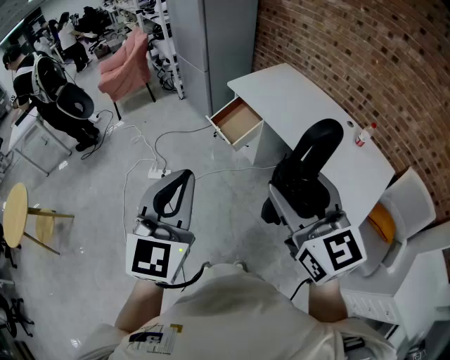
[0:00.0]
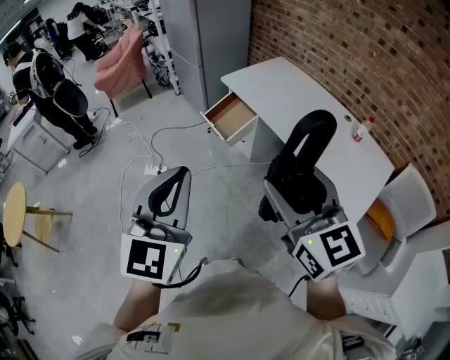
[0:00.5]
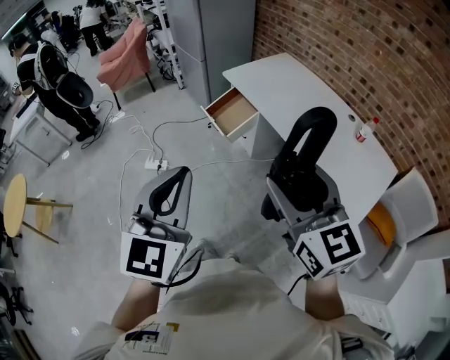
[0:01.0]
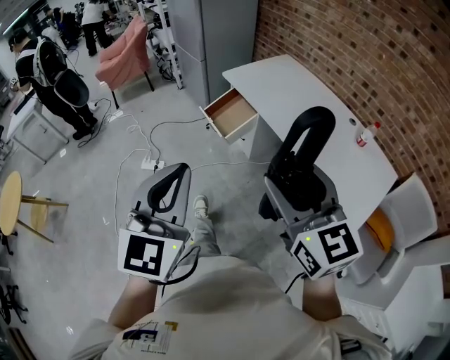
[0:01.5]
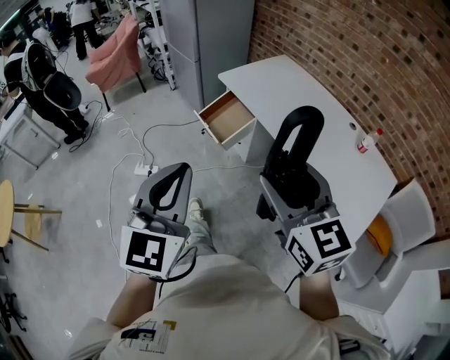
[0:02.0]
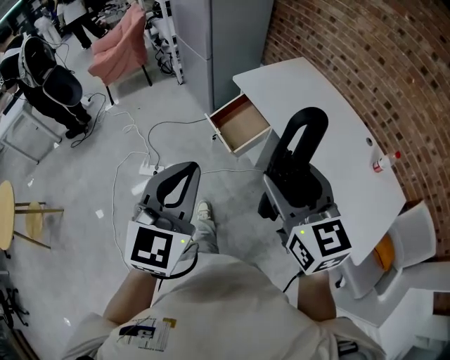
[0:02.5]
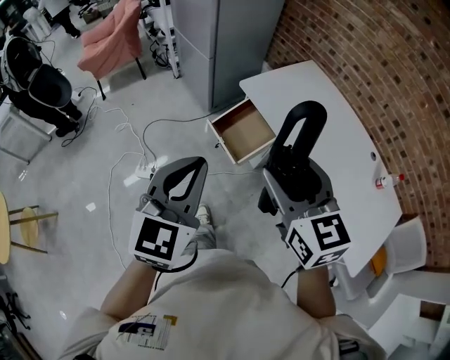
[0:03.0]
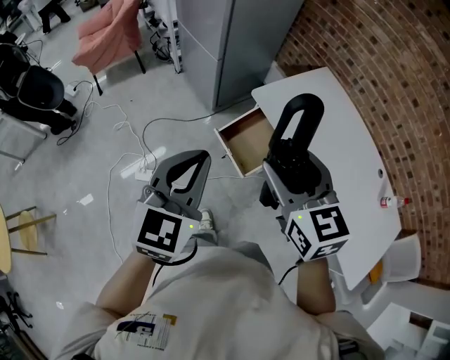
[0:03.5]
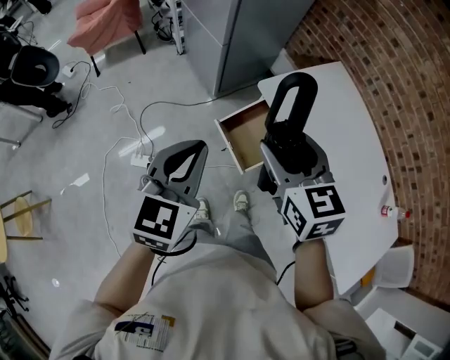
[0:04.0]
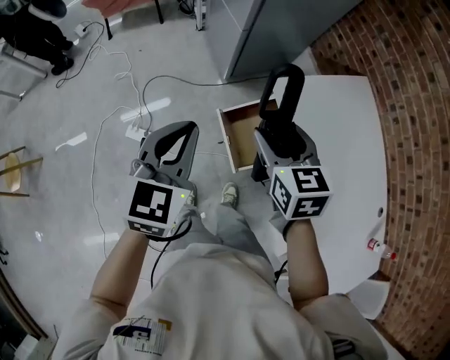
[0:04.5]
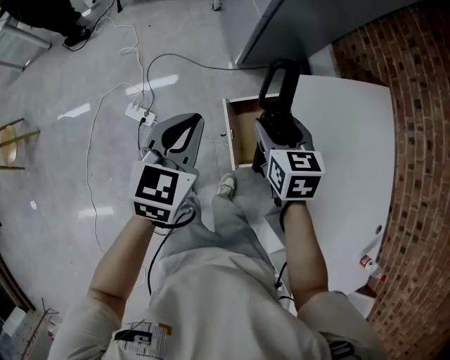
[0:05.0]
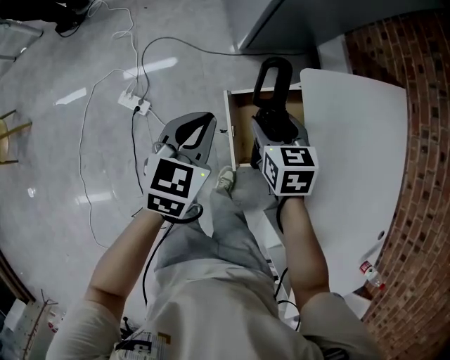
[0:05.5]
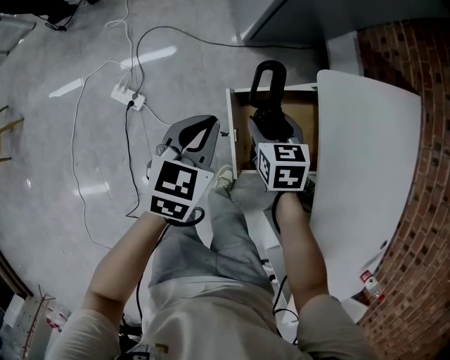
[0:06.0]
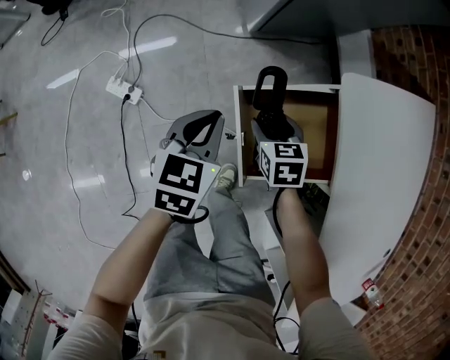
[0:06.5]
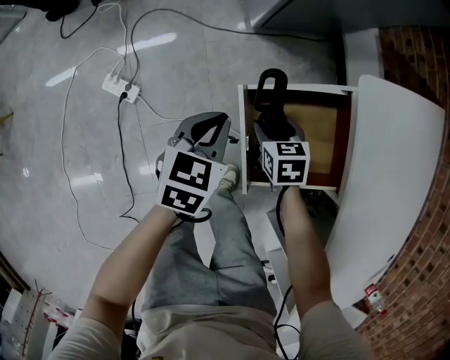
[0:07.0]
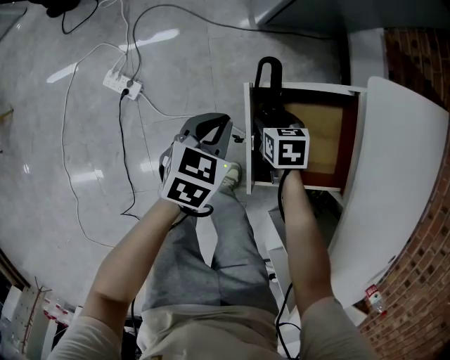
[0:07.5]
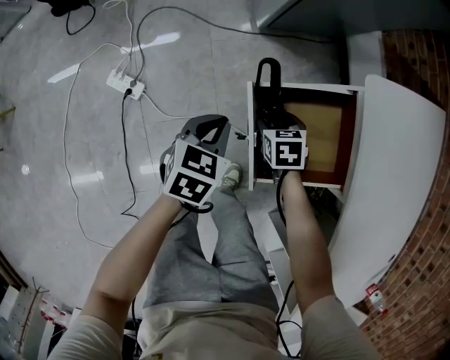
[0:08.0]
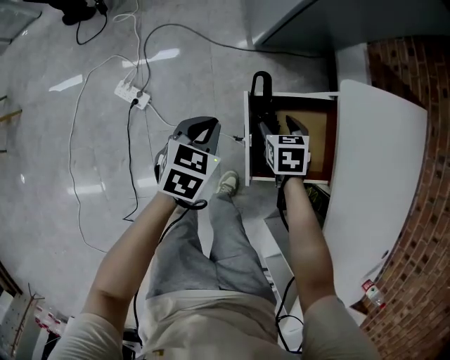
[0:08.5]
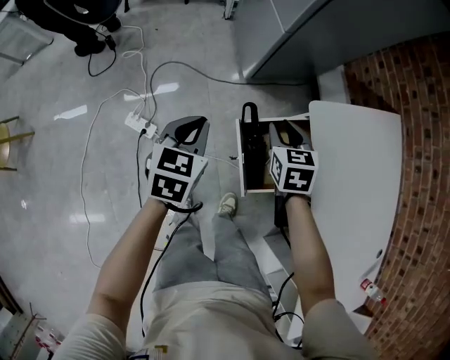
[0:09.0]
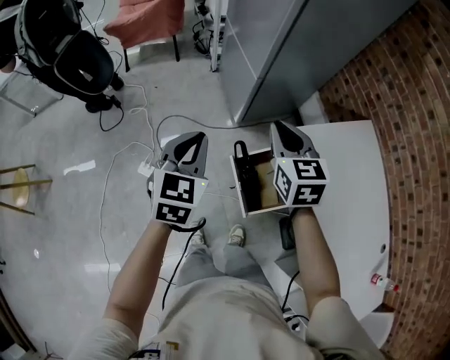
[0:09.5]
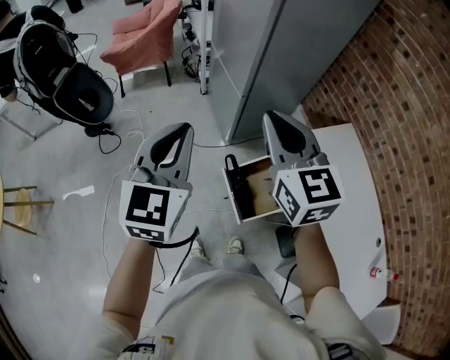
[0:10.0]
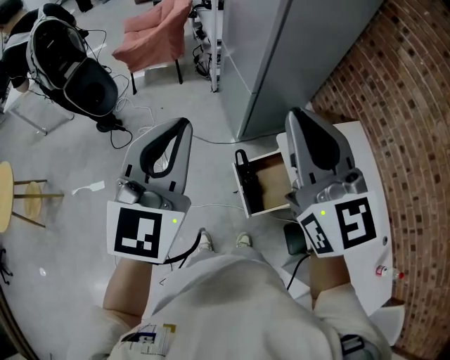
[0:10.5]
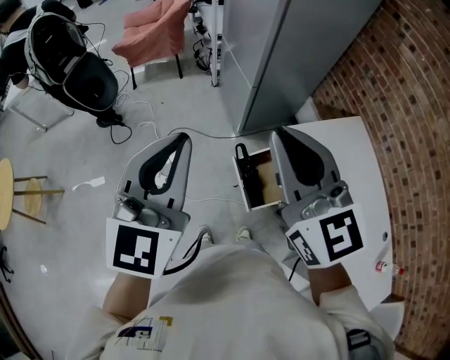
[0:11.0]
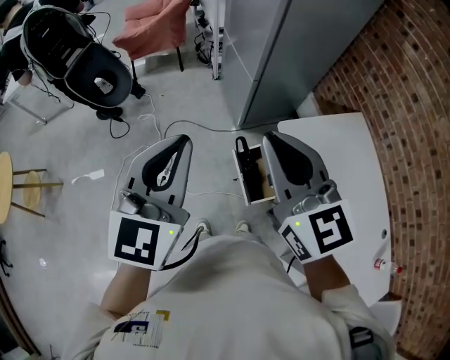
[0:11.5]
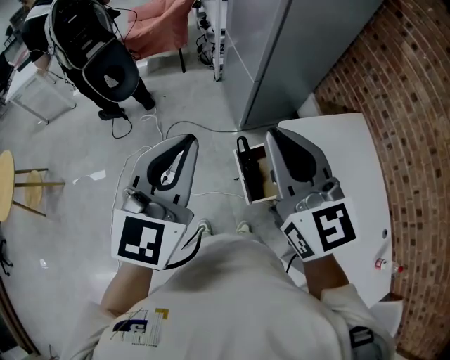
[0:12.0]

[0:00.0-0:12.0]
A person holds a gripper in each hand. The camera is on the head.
0:00.0 to 0:02.0: The left gripper goes some 15 cm forward, to the right and downward; the right gripper moves forward, downward and to the right, some 15 cm.
0:02.0 to 0:04.0: Both grippers are carried forward, roughly 50 cm.
0:04.0 to 0:06.0: The right gripper heads downward, covering some 40 cm, and swivels some 30 degrees. The left gripper moves downward and forward, approximately 35 cm, and swivels about 30 degrees.
0:06.0 to 0:08.0: Both grippers move downward, approximately 20 cm.
0:08.0 to 0:10.0: Both grippers move upward, roughly 60 cm. The left gripper tilts its fingers about 40 degrees upward; the right gripper points its fingers approximately 50 degrees further upward, and closes up.
0:10.0 to 0:12.0: The left gripper moves backward and upward, approximately 10 cm. The right gripper heads backward, covering approximately 10 cm.

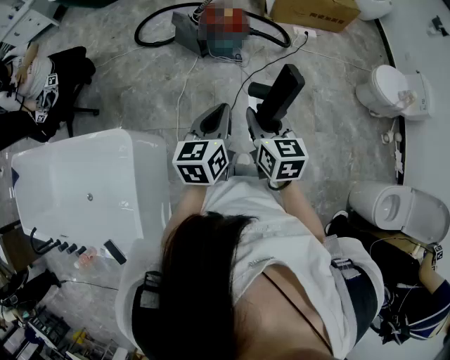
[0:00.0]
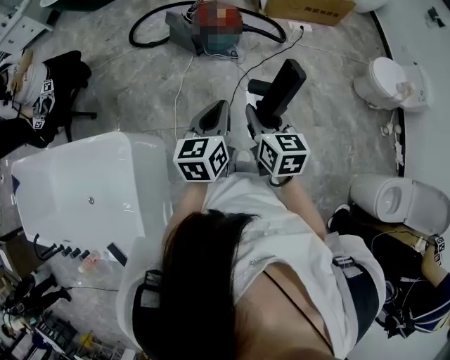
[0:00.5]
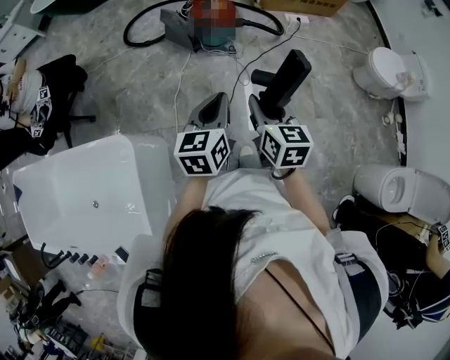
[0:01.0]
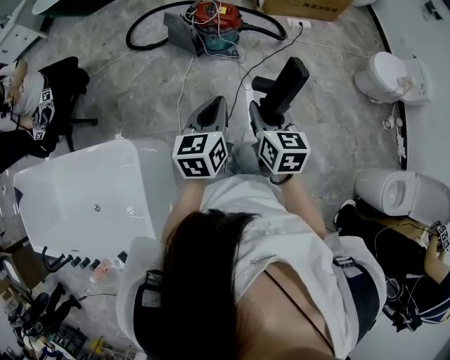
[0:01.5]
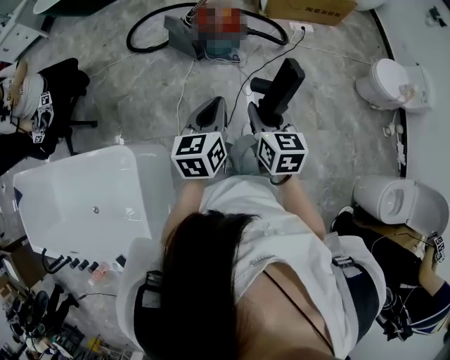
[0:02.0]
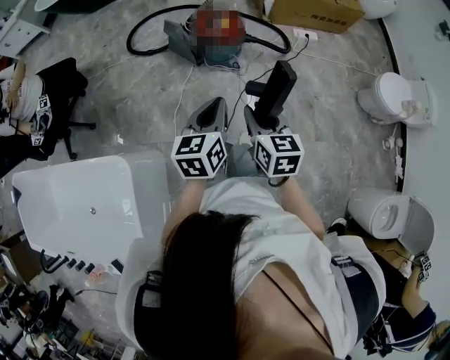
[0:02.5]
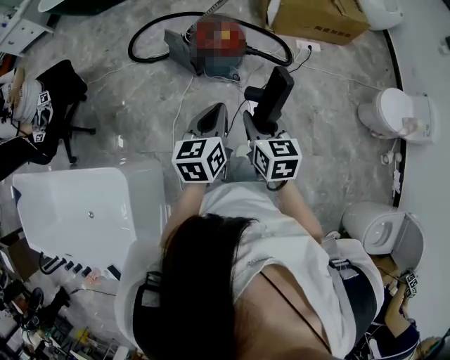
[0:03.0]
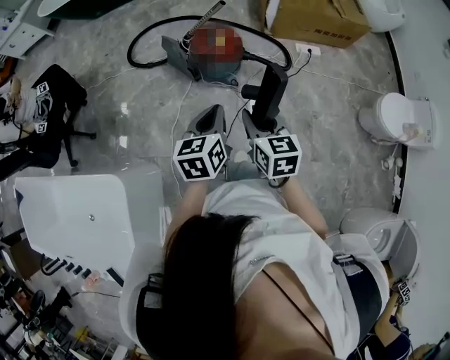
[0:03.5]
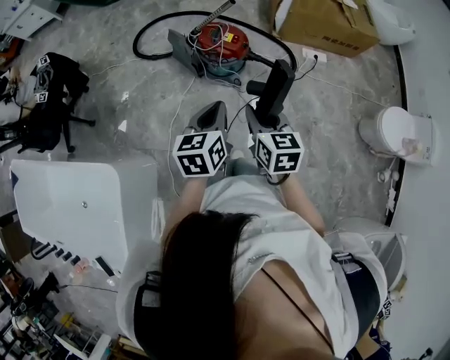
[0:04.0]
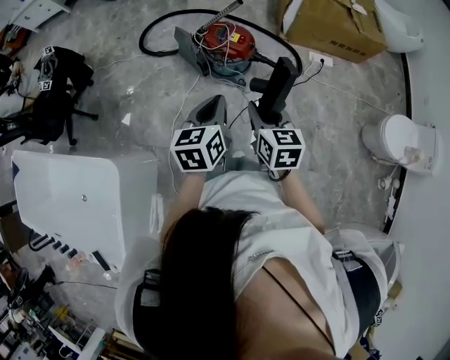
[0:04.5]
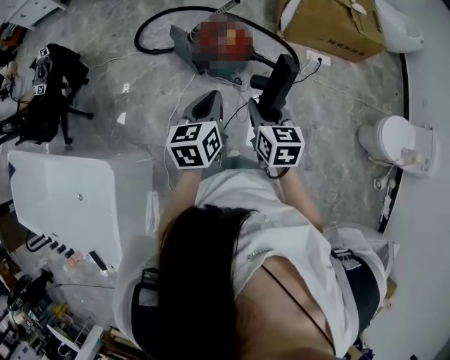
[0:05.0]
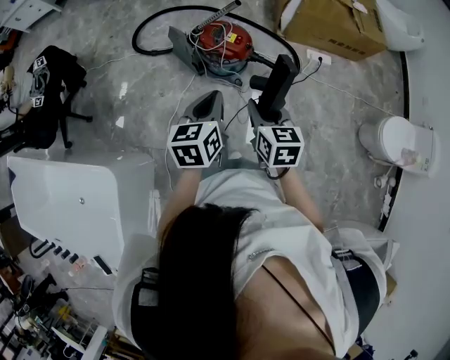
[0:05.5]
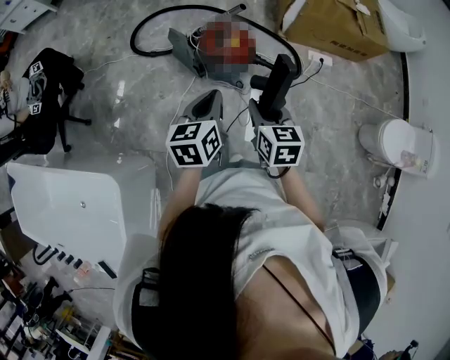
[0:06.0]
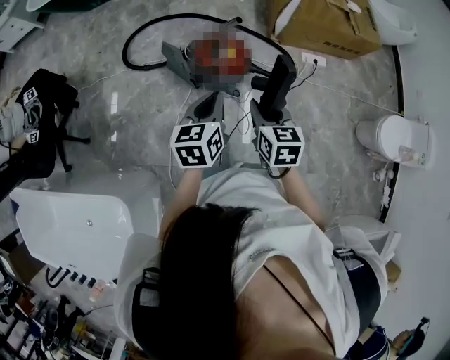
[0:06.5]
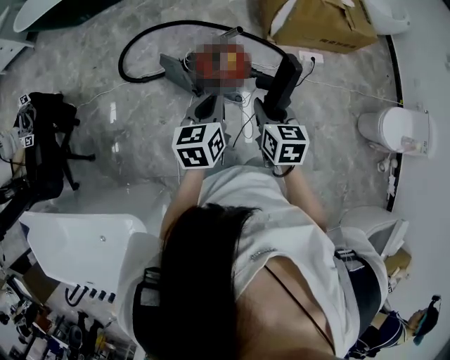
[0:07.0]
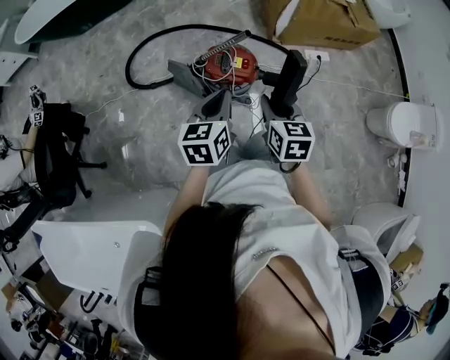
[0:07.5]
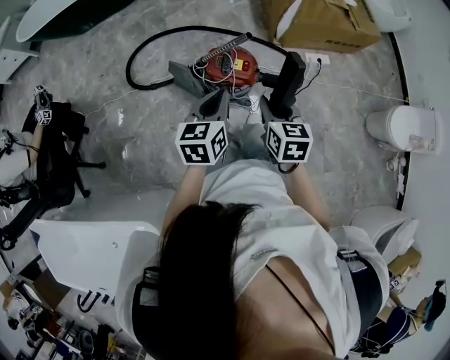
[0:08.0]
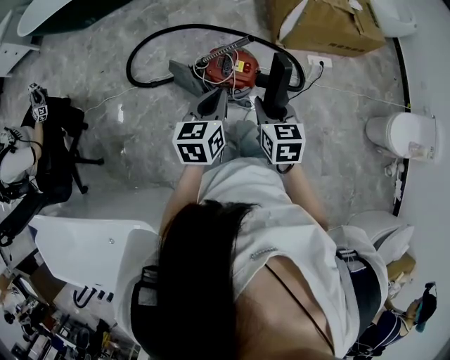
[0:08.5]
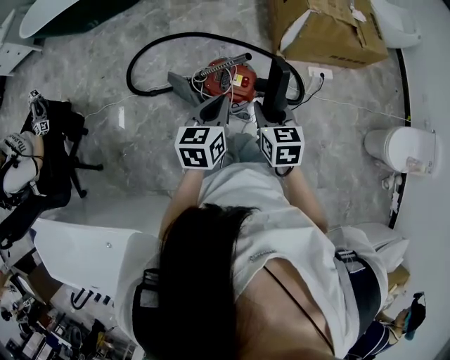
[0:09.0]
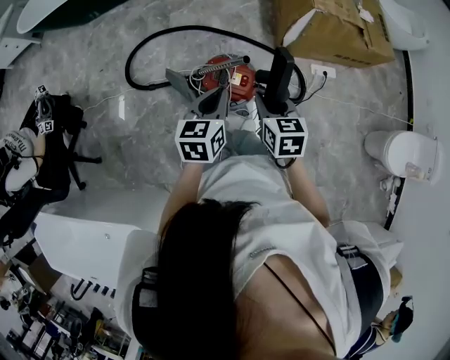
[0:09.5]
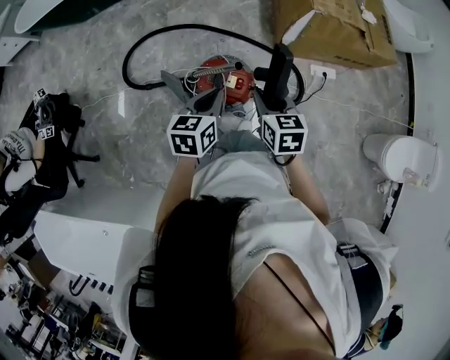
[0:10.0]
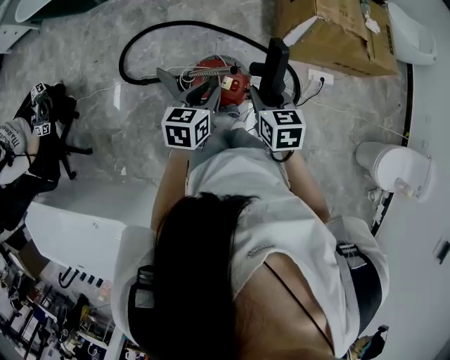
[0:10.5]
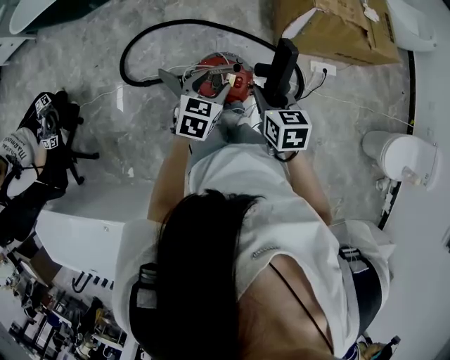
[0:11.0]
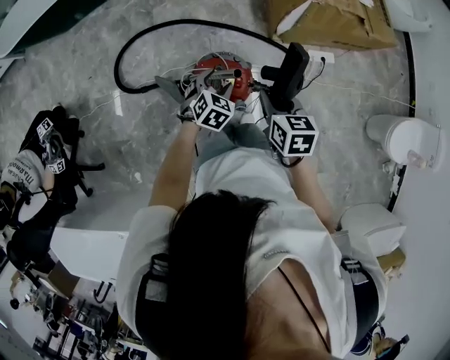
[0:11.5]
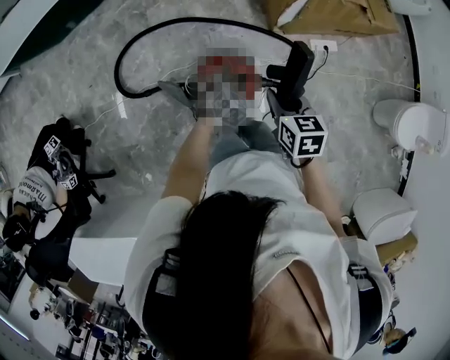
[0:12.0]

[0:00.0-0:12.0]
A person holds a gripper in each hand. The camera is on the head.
0:00.0 to 0:02.0: The grippers both shift forward by some 10 cm.
0:02.0 to 0:04.0: The grippers both shift forward and to the right by roughly 20 cm.
0:04.0 to 0:06.0: The two grippers go about 10 cm forward.
0:06.0 to 0:08.0: The two grippers go approximately 15 cm forward and to the left.
0:08.0 to 0:10.0: The grippers both shift forward by about 15 cm.
0:10.0 to 0:12.0: The left gripper shifts some 20 cm downward and forward, rolls clockwise, seen from behind, by some 50 degrees, and opens. Meanwhile the right gripper goes roughly 5 cm forward.

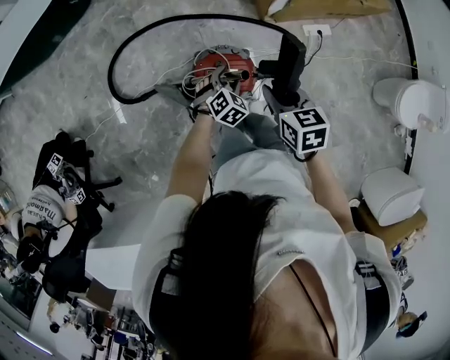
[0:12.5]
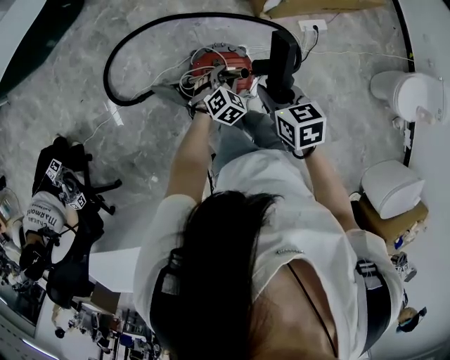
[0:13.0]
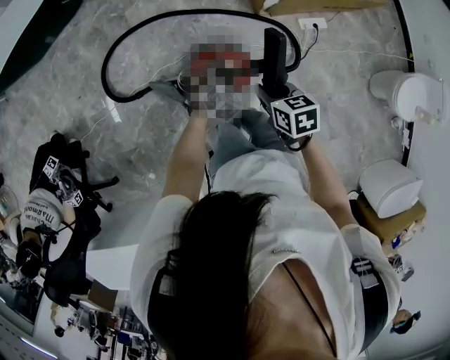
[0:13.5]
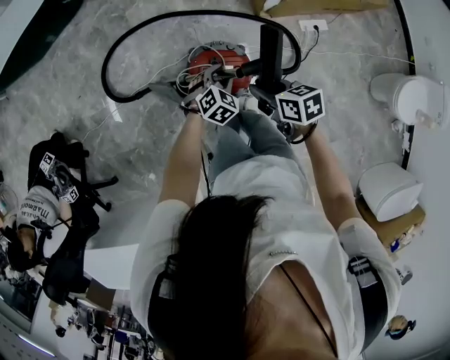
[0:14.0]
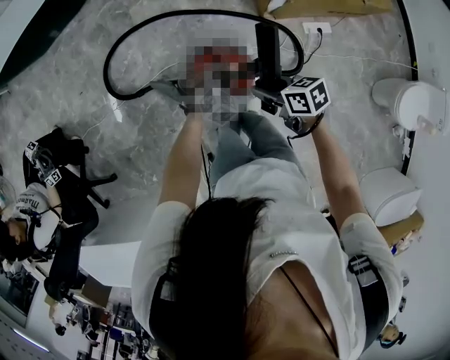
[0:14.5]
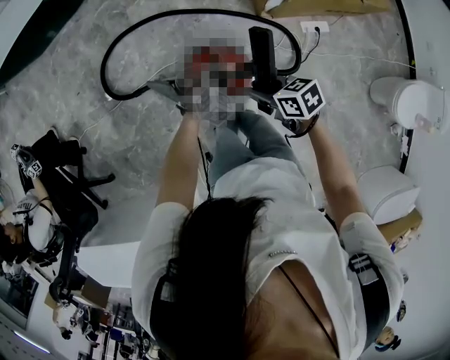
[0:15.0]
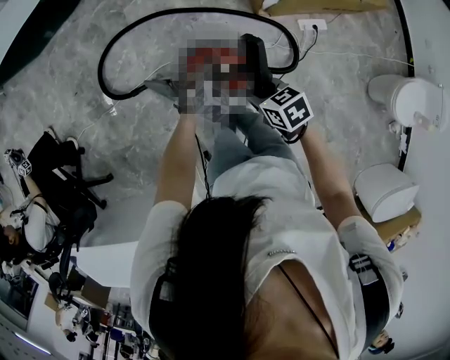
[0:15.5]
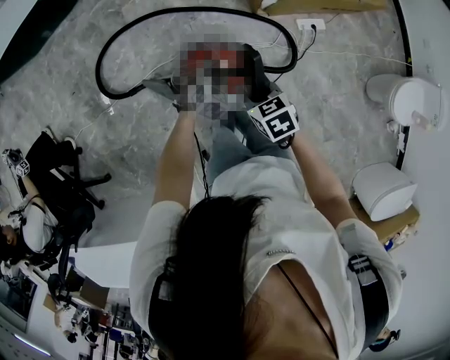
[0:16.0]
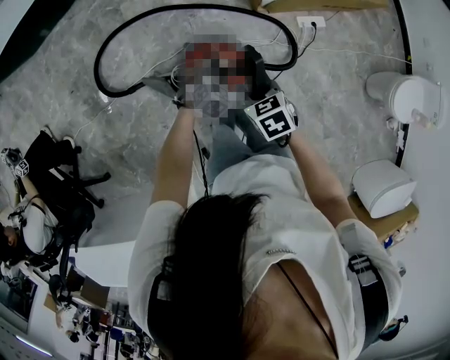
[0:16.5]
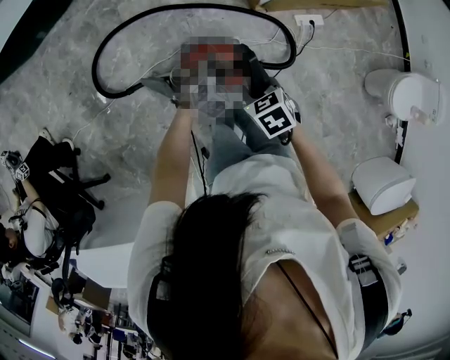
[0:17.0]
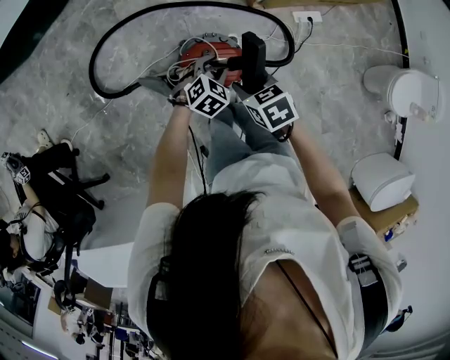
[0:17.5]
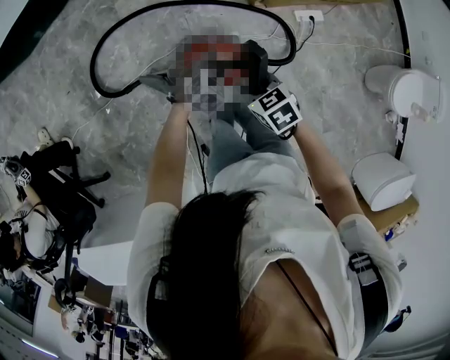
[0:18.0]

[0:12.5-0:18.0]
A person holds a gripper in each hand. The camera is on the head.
0:12.5 to 0:14.5: The left gripper closes, while the right gripper travels downward by approximately 5 cm, and changes its angle by some 30 degrees.
0:14.5 to 0:16.0: The right gripper rotates approximately 30 degrees.
0:16.0 to 0:18.0: There are only small adjustments of the grippers.
